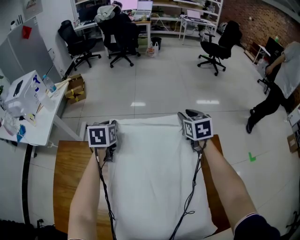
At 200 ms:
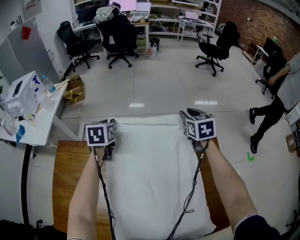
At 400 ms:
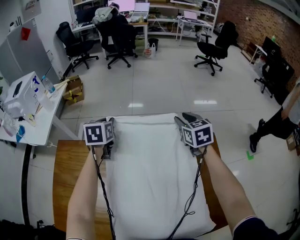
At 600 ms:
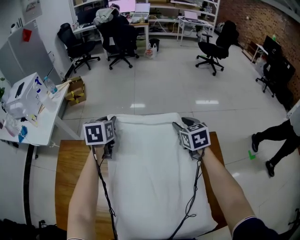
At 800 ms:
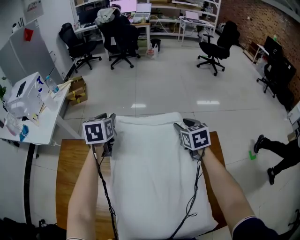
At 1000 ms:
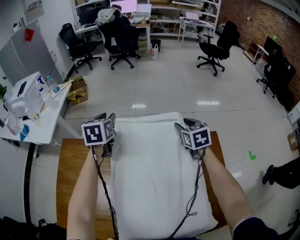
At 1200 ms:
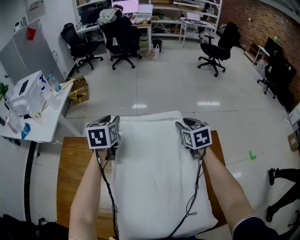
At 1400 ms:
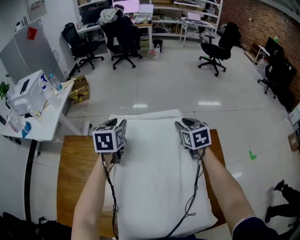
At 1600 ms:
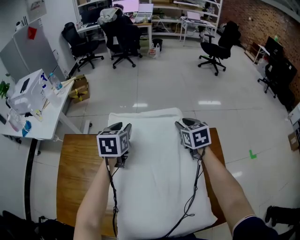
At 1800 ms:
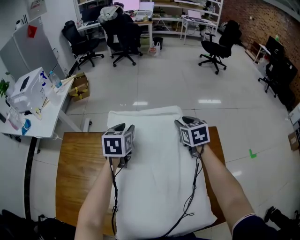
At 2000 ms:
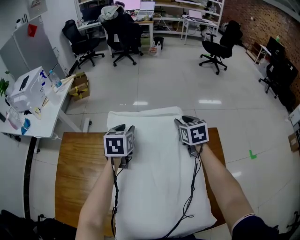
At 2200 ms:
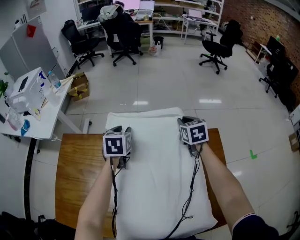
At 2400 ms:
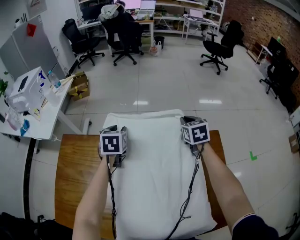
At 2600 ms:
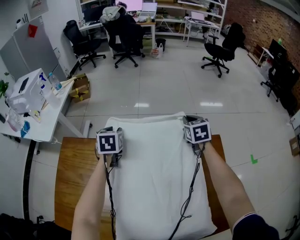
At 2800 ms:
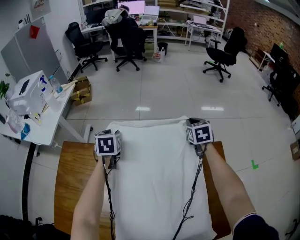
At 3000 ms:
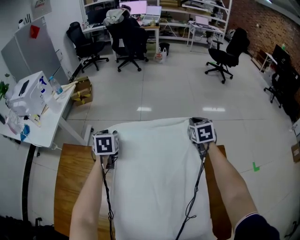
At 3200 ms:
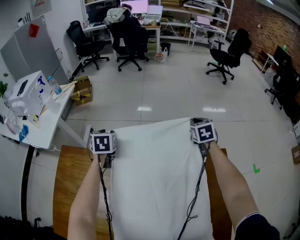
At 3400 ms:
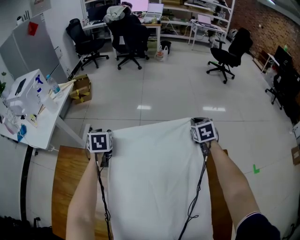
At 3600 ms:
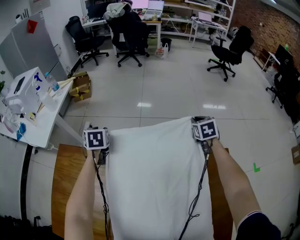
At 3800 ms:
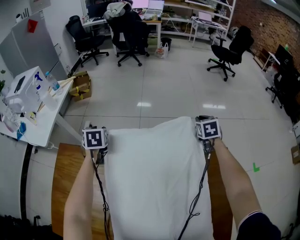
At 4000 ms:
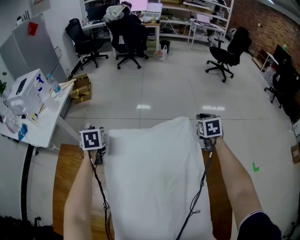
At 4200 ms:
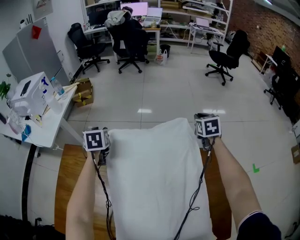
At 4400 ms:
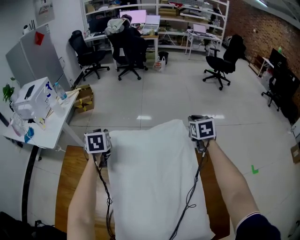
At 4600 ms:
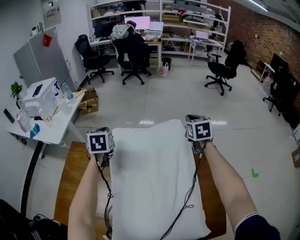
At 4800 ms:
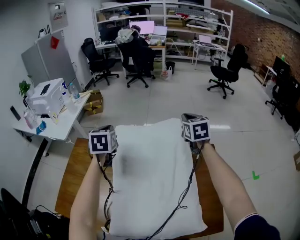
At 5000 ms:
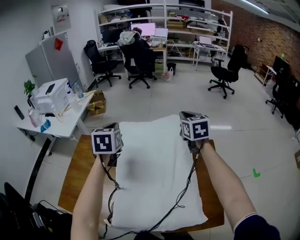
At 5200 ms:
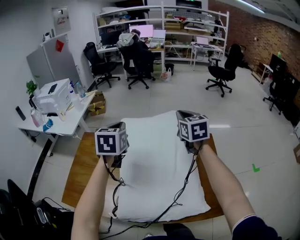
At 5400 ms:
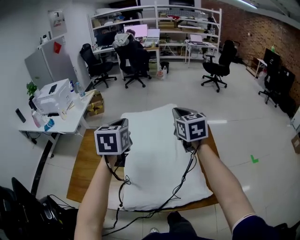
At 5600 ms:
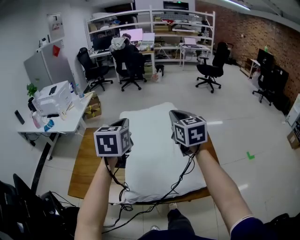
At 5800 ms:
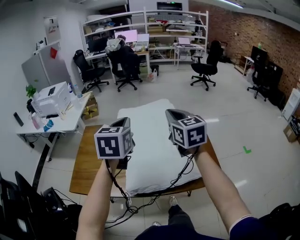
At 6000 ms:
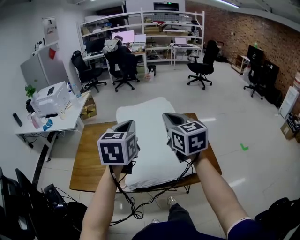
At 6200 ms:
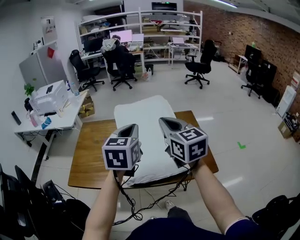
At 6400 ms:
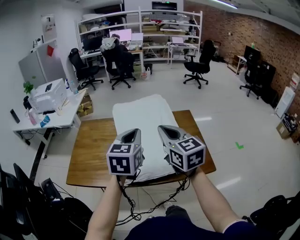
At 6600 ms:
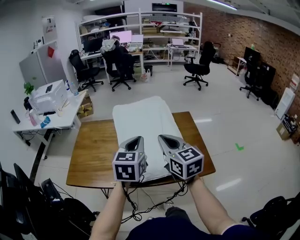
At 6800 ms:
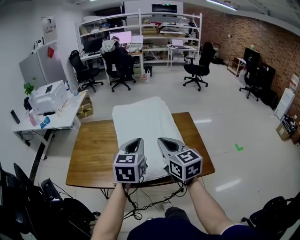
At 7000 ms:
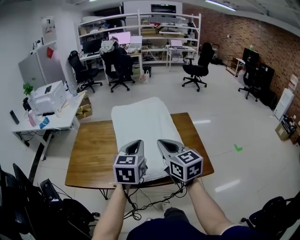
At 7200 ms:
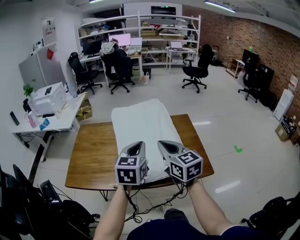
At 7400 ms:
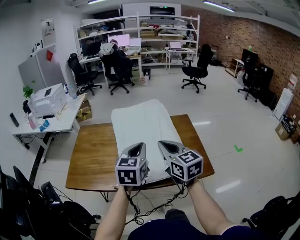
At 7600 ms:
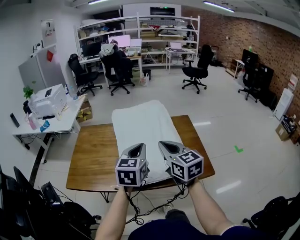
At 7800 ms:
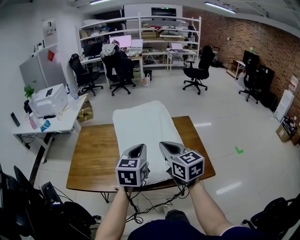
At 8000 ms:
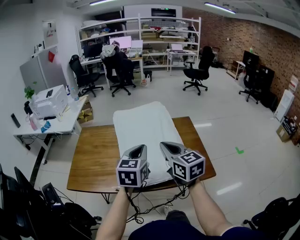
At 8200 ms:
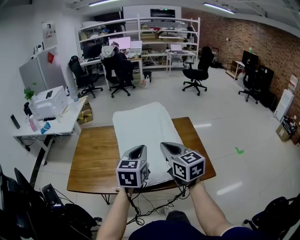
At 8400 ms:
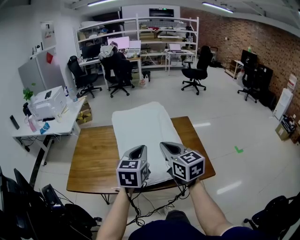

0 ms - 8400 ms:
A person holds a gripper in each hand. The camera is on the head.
0 ms - 1400 ms: The left gripper moves backward and upward, about 10 cm, and opens its fingers. Meanwhile the right gripper heads backward, covering some 5 cm.
1400 ms - 2800 ms: The left gripper shifts roughly 10 cm downward and to the left. Meanwhile the right gripper is displaced forward and to the right by about 10 cm, and closes.
2800 ms - 4200 ms: The right gripper moves about 5 cm. Meanwhile the left gripper shifts roughly 5 cm to the left.
4200 ms - 5600 ms: The left gripper is displaced backward and upward by roughly 40 cm, turns by some 30 degrees, and closes its fingers. The right gripper shifts some 40 cm backward, upward and to the left, and changes its angle by roughly 30 degrees.
5600 ms - 7000 ms: The right gripper shifts roughly 20 cm backward. Meanwhile the left gripper shifts roughly 20 cm backward and to the right.
7000 ms - 8400 ms: The two grippers keep their place.

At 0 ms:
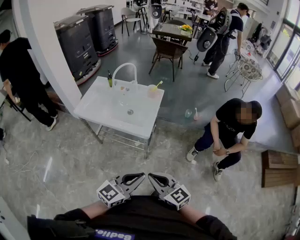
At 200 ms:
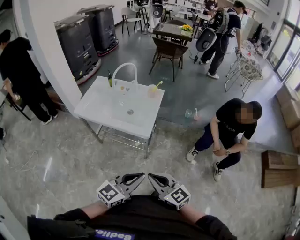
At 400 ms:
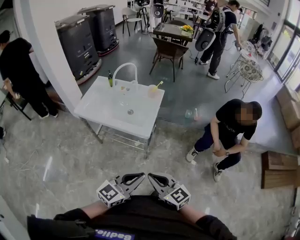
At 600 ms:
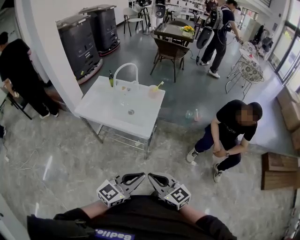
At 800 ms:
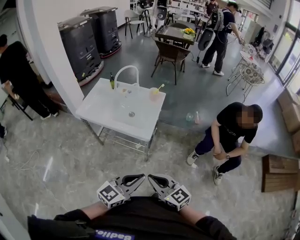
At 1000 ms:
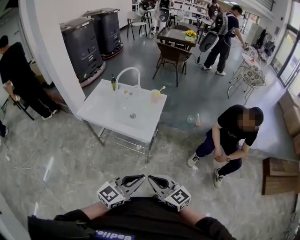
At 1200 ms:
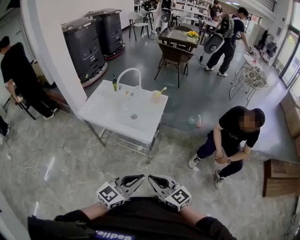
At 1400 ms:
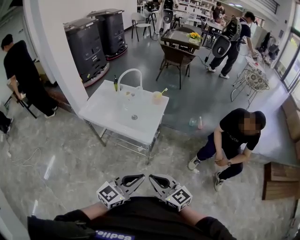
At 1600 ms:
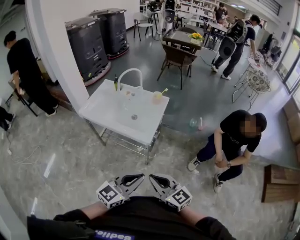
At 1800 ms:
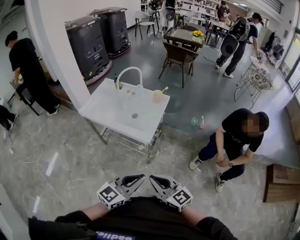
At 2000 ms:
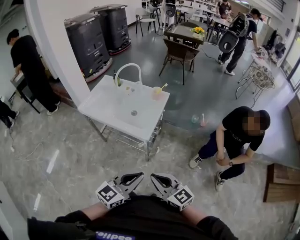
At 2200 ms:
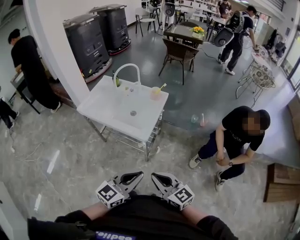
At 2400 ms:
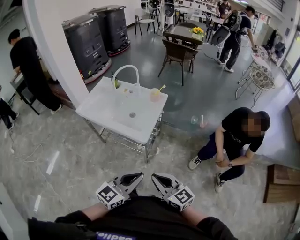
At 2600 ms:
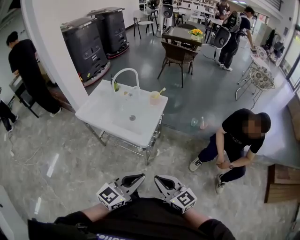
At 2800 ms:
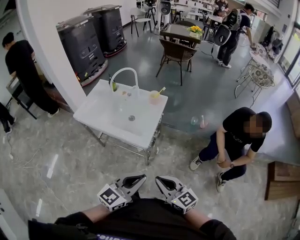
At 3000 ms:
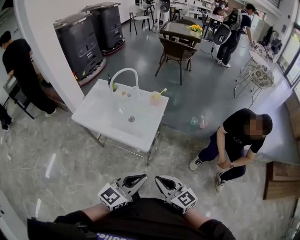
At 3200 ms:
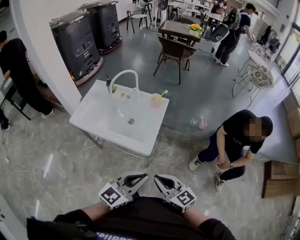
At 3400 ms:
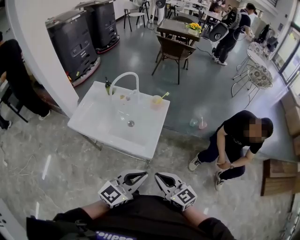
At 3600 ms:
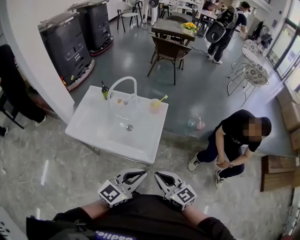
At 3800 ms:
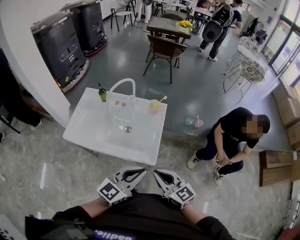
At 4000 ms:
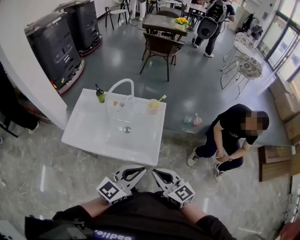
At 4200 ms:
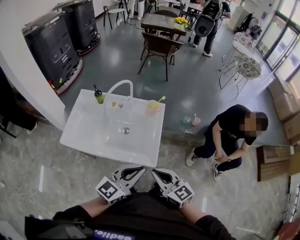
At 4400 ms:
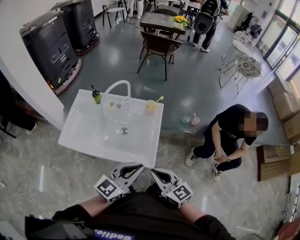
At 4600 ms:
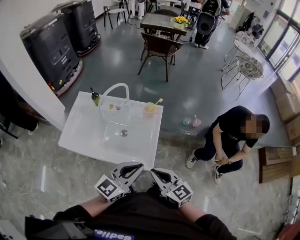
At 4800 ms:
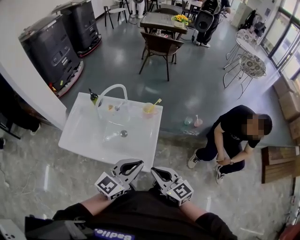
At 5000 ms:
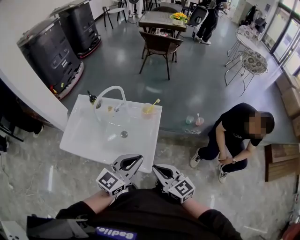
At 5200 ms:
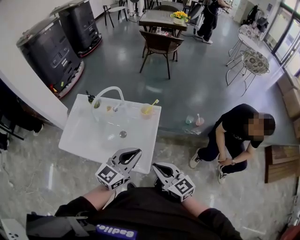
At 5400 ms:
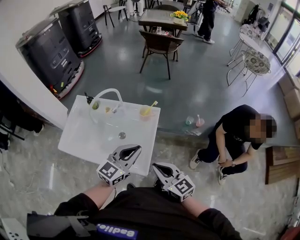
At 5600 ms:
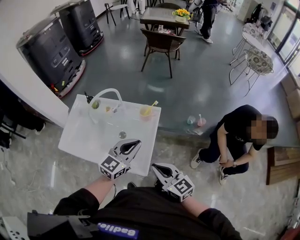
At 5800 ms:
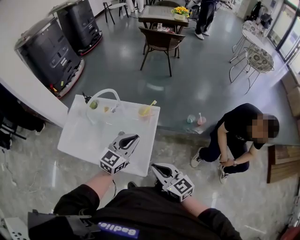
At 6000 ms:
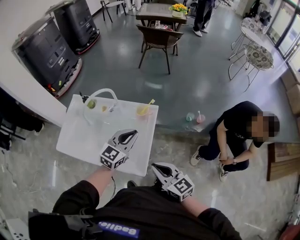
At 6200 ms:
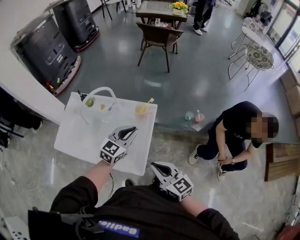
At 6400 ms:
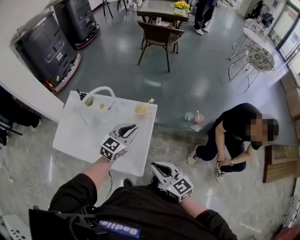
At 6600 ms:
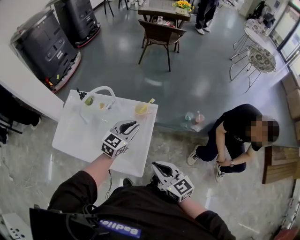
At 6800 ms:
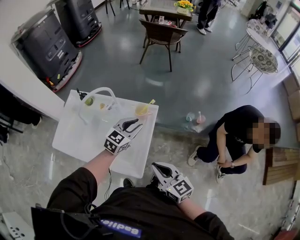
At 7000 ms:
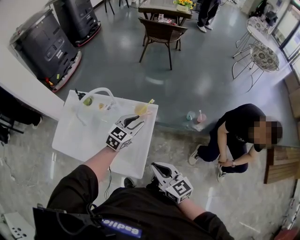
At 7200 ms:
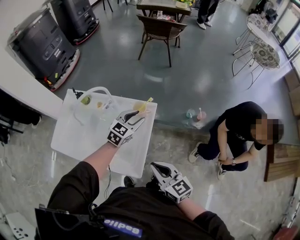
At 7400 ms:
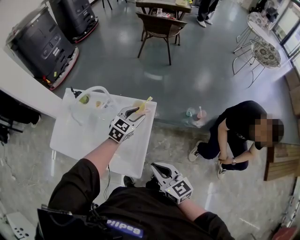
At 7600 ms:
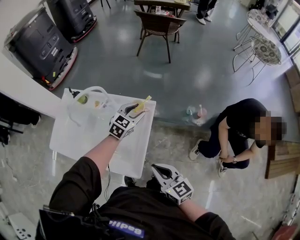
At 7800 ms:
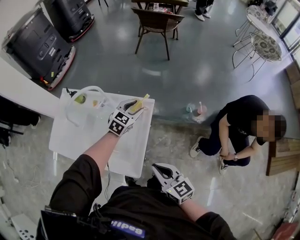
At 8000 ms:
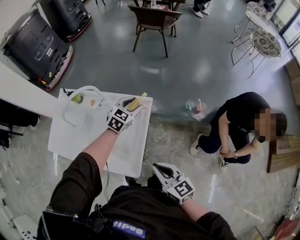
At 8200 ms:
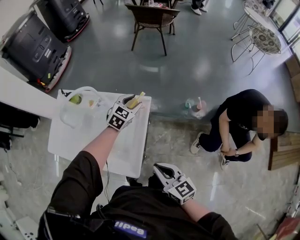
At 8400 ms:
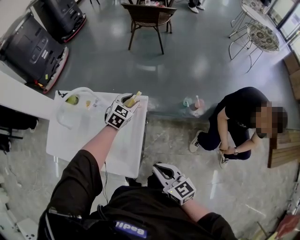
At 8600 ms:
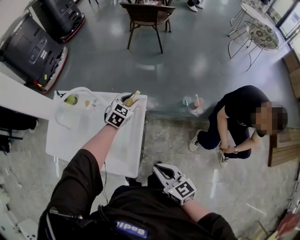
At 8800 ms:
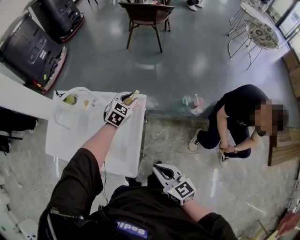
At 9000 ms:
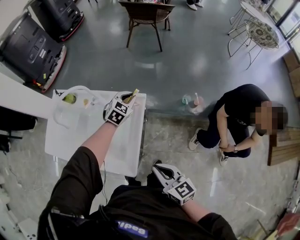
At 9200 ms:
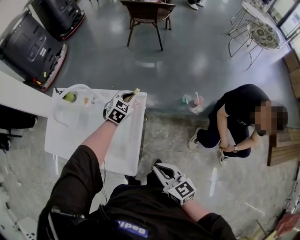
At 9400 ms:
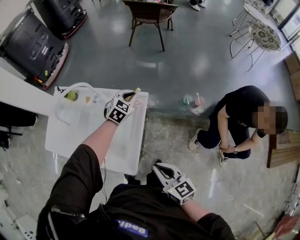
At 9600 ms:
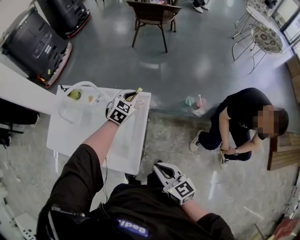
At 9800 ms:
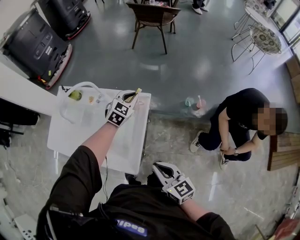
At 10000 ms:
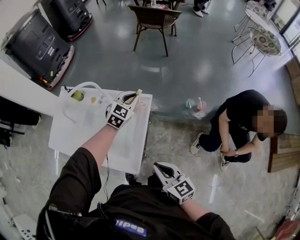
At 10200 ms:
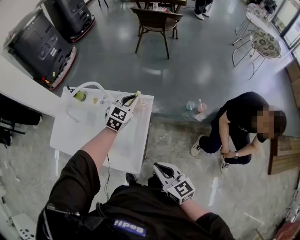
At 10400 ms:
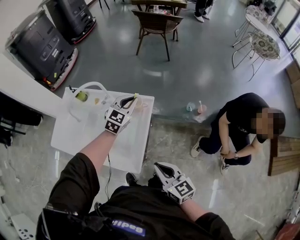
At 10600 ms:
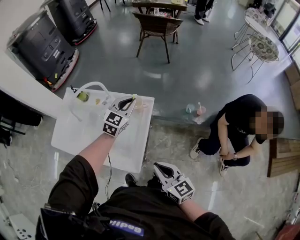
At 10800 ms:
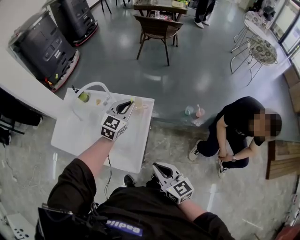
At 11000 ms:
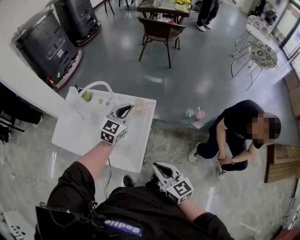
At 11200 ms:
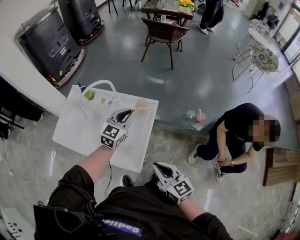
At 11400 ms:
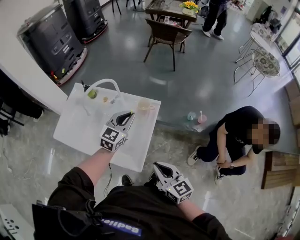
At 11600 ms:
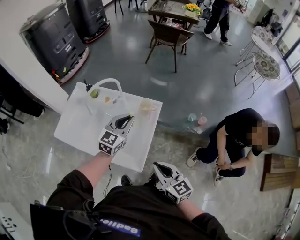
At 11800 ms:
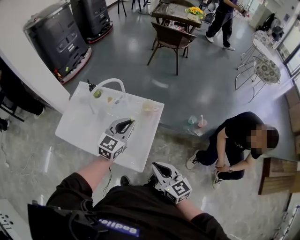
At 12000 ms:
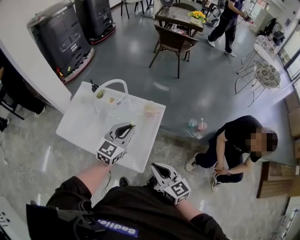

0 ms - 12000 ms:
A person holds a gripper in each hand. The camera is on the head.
0 ms - 1600 ms: The grippers make only small movements.
1600 ms - 3000 ms: Both grippers travel together forward, about 10 cm.
3000 ms - 4400 ms: The grippers both shift forward and to the left by approximately 20 cm.
4400 ms - 6000 ms: The left gripper goes approximately 20 cm forward, while the right gripper is displaced forward and to the right by roughly 15 cm.
6000 ms - 7600 ms: The left gripper shifts about 20 cm forward and downward, and opens its fingers.
7600 ms - 9000 ms: The left gripper travels forward and downward by about 5 cm, and closes up. Meanwhile the right gripper moves approximately 5 cm.
9000 ms - 10400 ms: The left gripper moves upward, about 10 cm.
10400 ms - 12000 ms: The left gripper shifts about 20 cm backward, to the left and upward. The right gripper moves to the left, some 5 cm.

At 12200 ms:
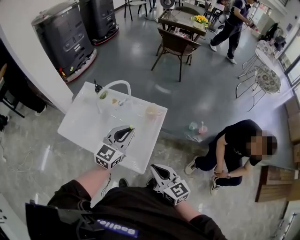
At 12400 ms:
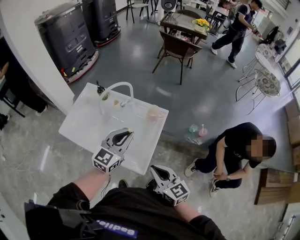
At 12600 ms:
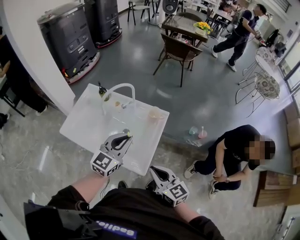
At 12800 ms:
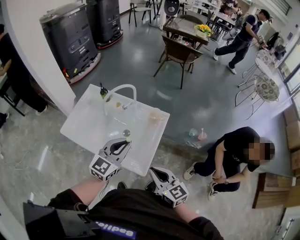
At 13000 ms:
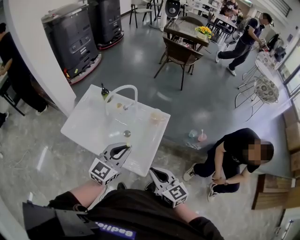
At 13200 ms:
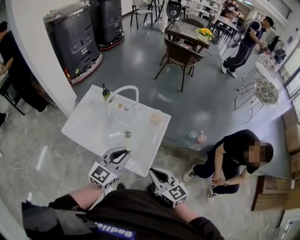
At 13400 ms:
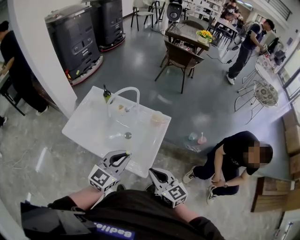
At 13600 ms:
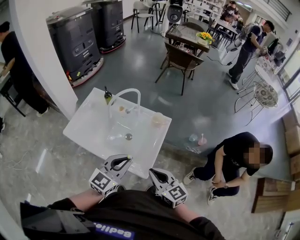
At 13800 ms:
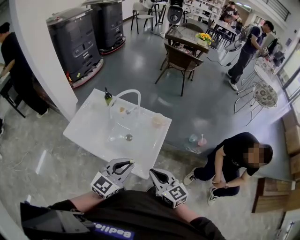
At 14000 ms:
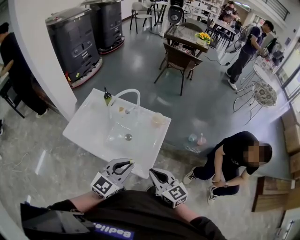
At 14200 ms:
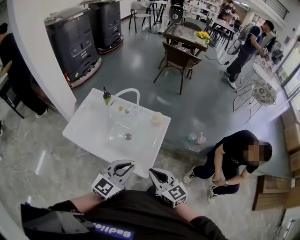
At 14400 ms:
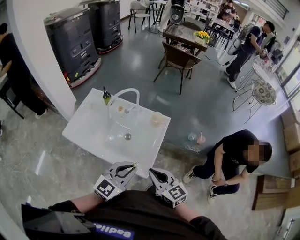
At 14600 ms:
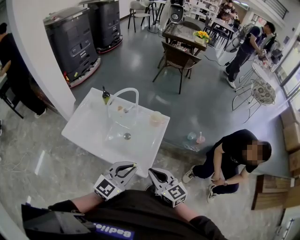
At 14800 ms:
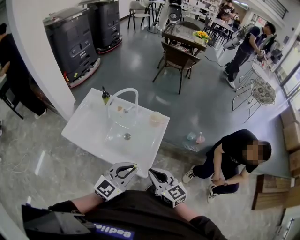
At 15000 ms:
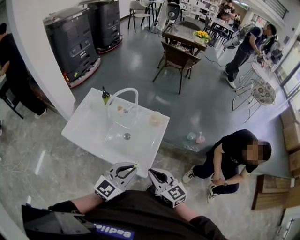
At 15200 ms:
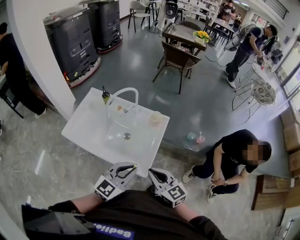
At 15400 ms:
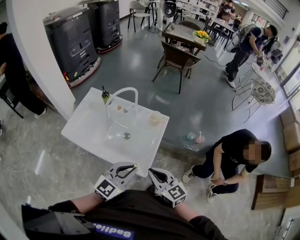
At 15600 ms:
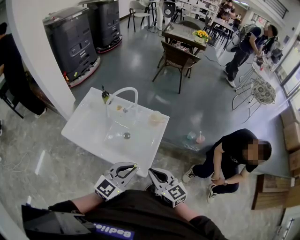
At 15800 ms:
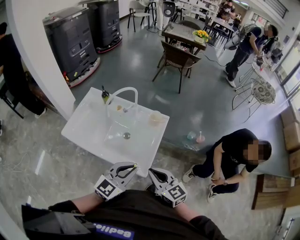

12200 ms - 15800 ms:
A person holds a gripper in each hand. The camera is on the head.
12200 ms - 14000 ms: The right gripper shifts by approximately 5 cm. The left gripper heads backward, covering some 15 cm.
14000 ms - 15800 ms: The grippers make only small movements.
